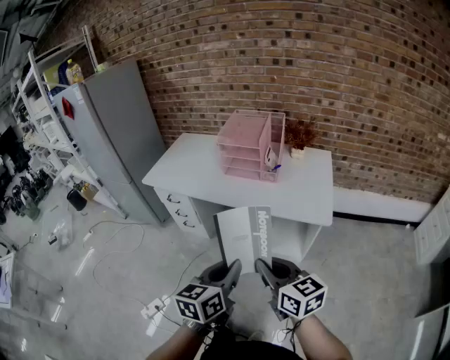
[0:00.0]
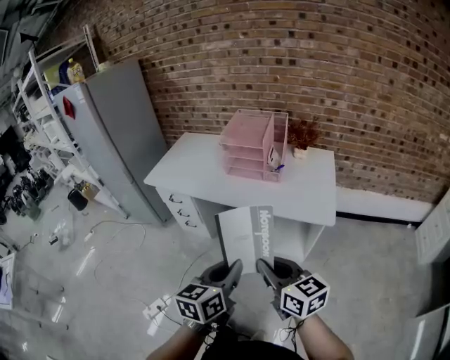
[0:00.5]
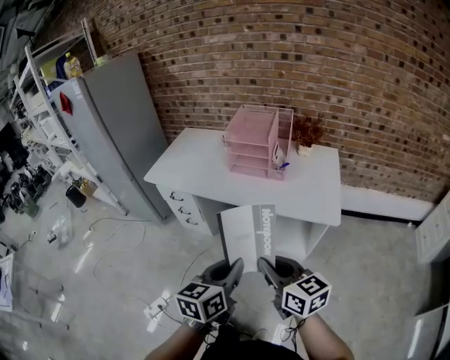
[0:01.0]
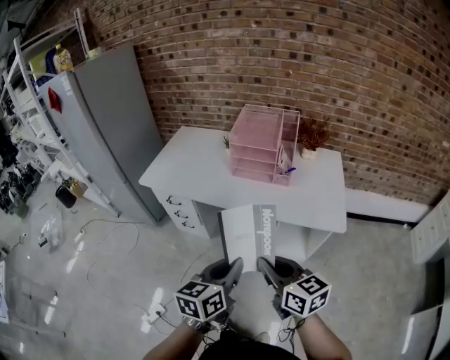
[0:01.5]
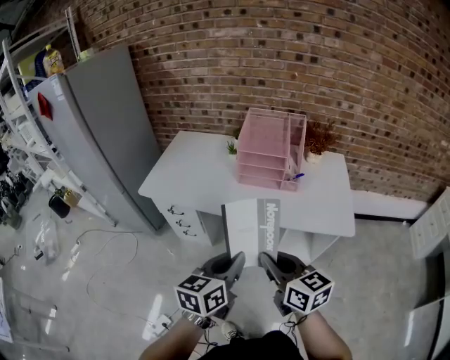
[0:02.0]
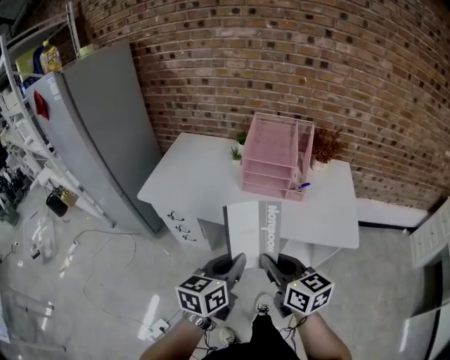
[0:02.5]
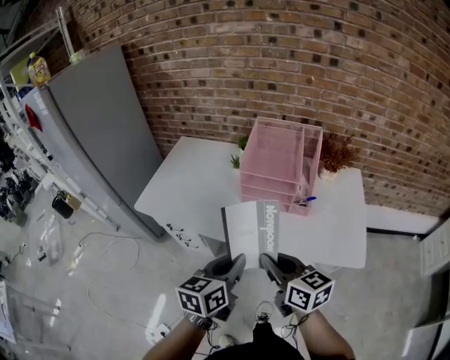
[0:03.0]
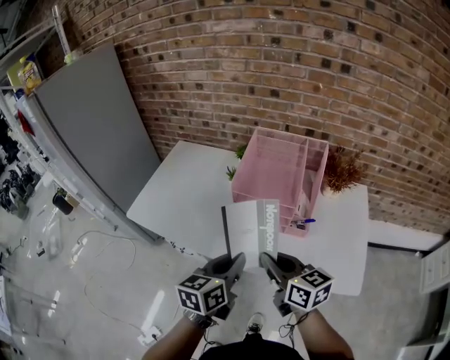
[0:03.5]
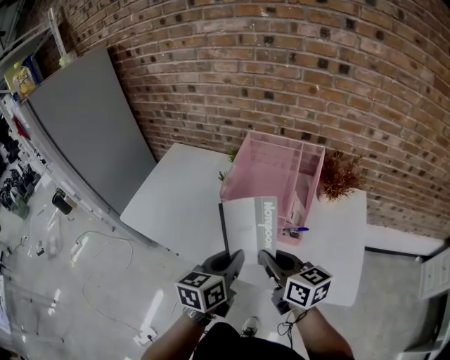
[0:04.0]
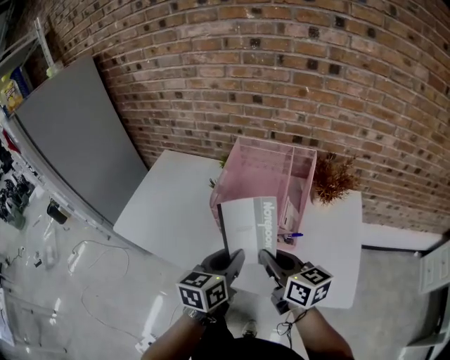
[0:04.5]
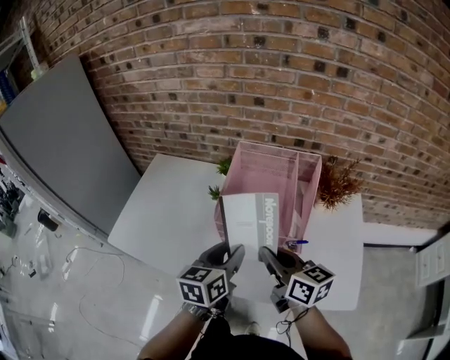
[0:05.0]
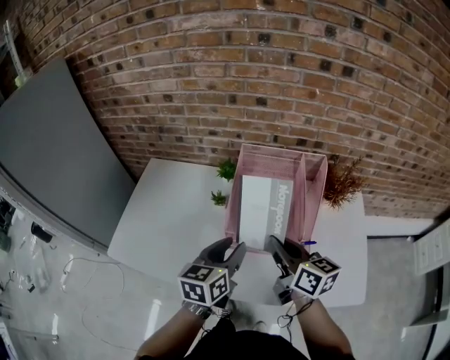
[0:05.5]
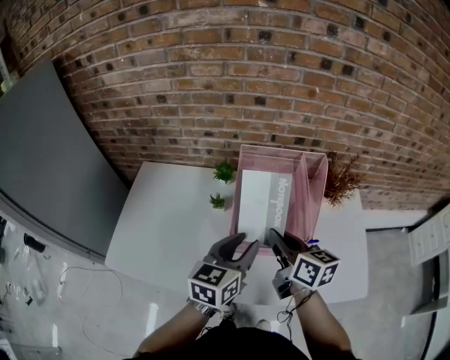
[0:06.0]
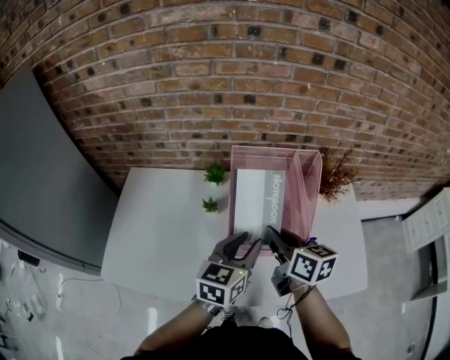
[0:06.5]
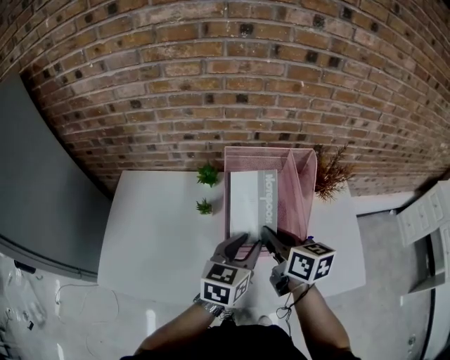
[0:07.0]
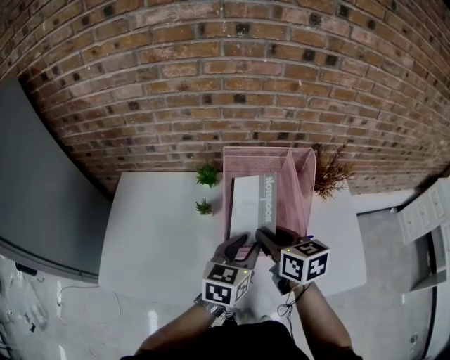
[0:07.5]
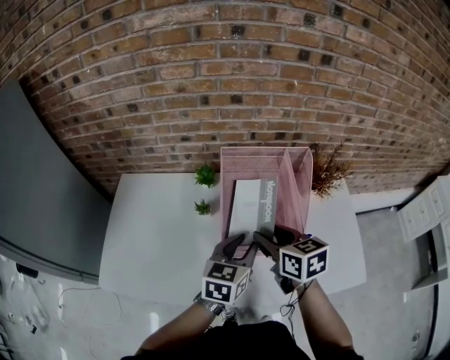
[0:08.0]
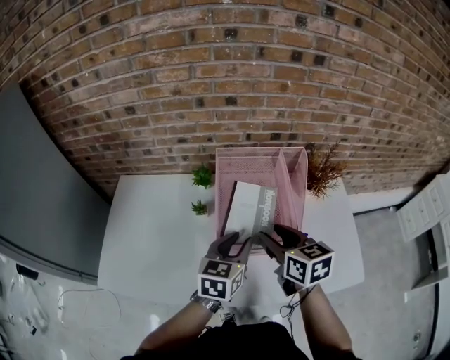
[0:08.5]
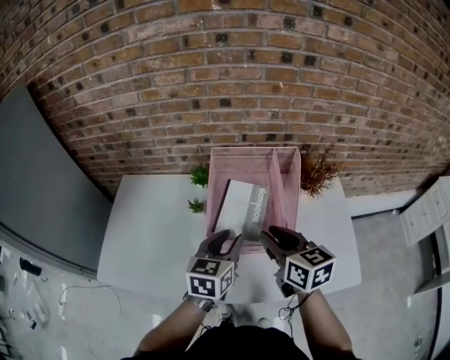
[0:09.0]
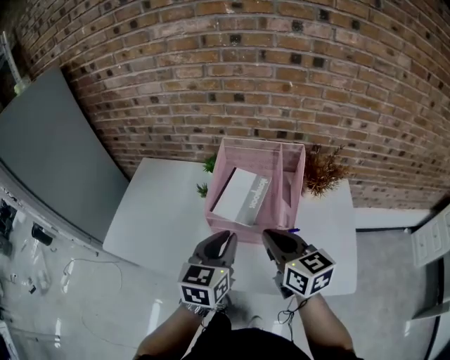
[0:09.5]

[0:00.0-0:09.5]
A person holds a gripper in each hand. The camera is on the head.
0:00.0 to 0:02.0: The two grippers go some 20 cm forward and to the left.
0:02.0 to 0:04.0: The two grippers go approximately 30 cm forward.
0:04.0 to 0:05.5: Both grippers move forward, about 15 cm. The left gripper opens its fingers.
0:05.5 to 0:07.5: The right gripper is displaced forward by about 5 cm, and opens its fingers. Meanwhile the left gripper shifts by roughly 5 cm.
0:07.5 to 0:09.5: The left gripper heads backward and upward, covering roughly 10 cm, and closes; the right gripper travels backward, to the right and upward by some 15 cm, and closes.

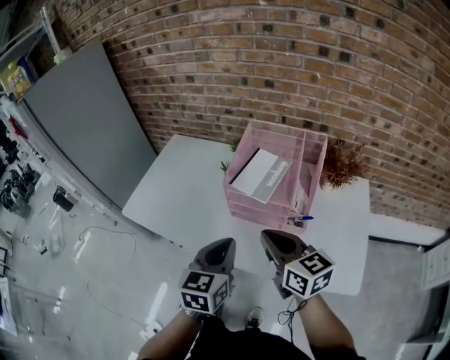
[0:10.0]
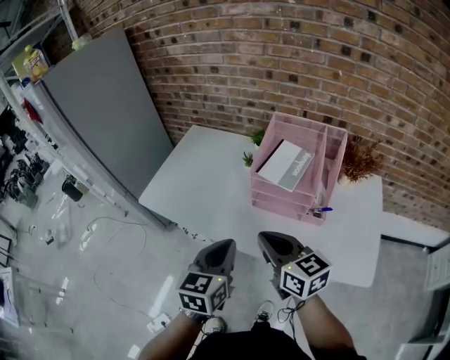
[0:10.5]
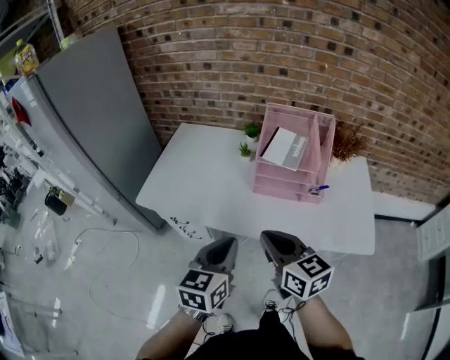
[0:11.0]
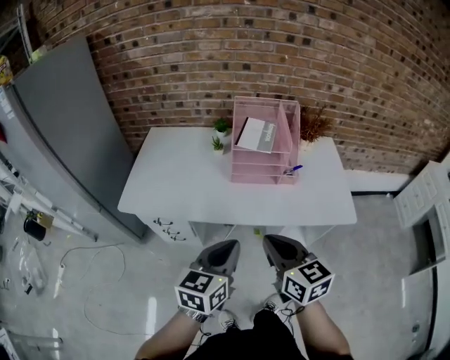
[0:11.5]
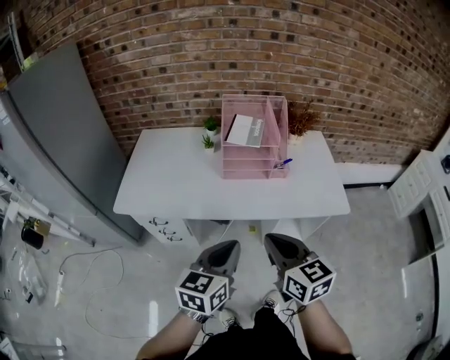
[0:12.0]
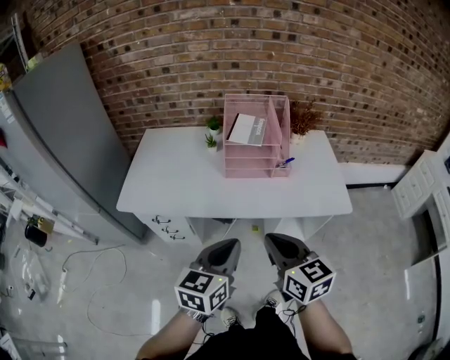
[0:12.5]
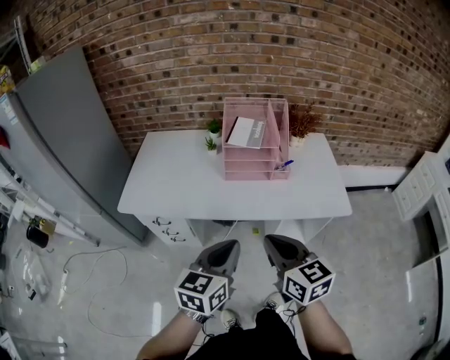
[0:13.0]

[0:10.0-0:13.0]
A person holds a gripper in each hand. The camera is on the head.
0:10.0 to 0:11.5: The right gripper changes place by some 25 cm, and swivels approximately 20 degrees; the left gripper moves some 20 cm, and turns by some 20 degrees.
0:11.5 to 0:13.0: There are only small adjustments of the grippers.

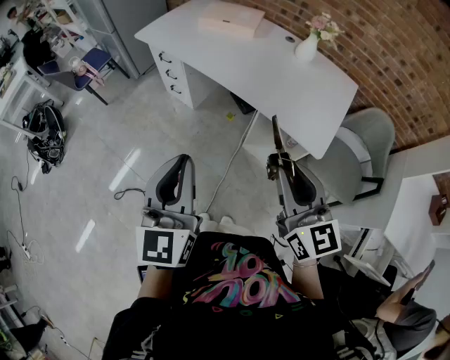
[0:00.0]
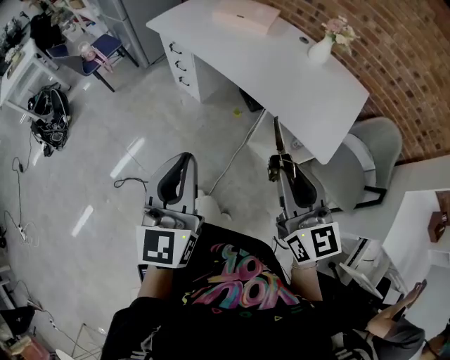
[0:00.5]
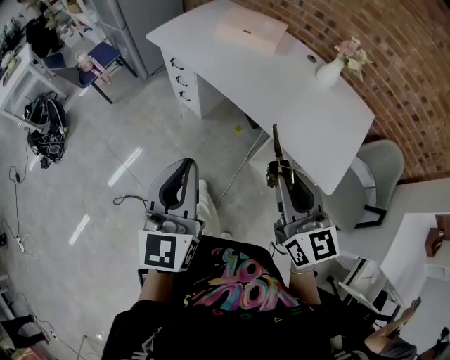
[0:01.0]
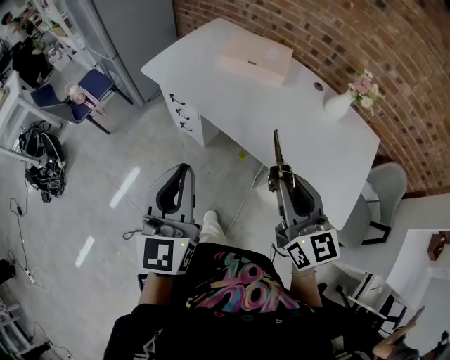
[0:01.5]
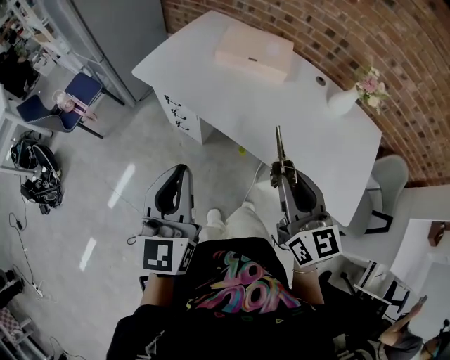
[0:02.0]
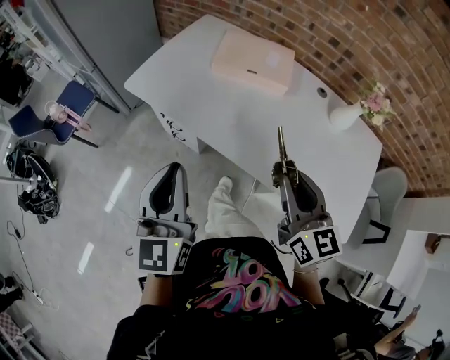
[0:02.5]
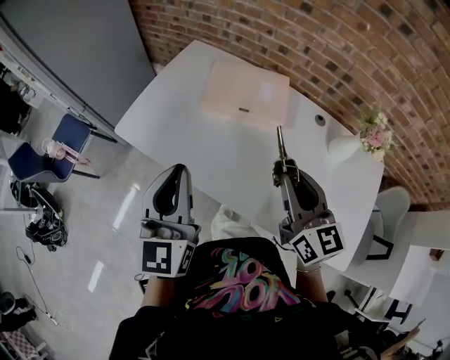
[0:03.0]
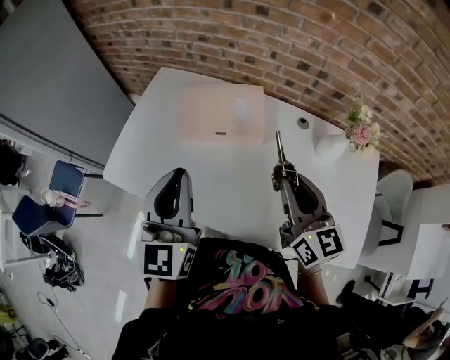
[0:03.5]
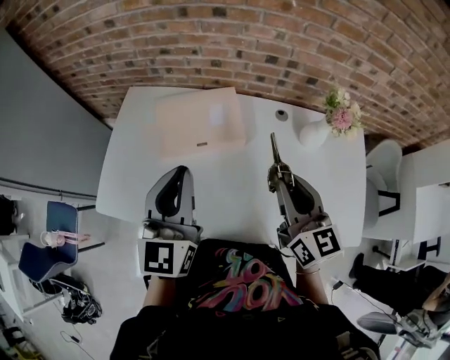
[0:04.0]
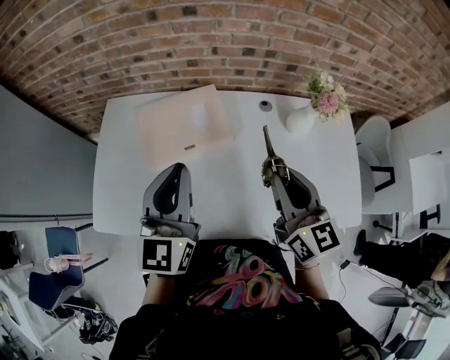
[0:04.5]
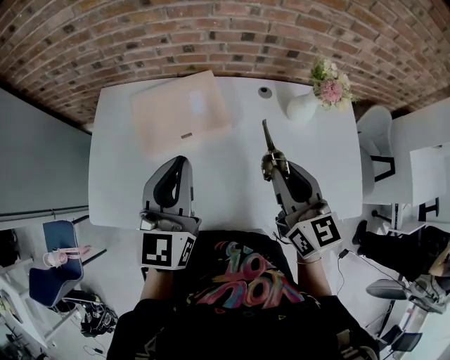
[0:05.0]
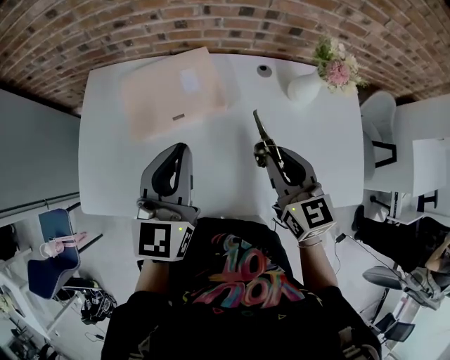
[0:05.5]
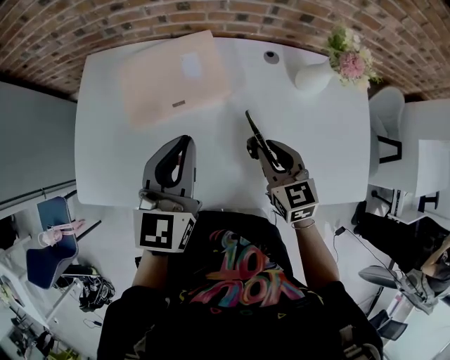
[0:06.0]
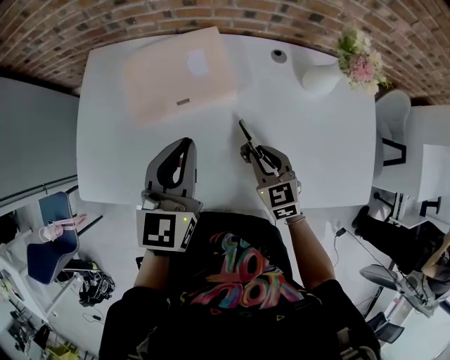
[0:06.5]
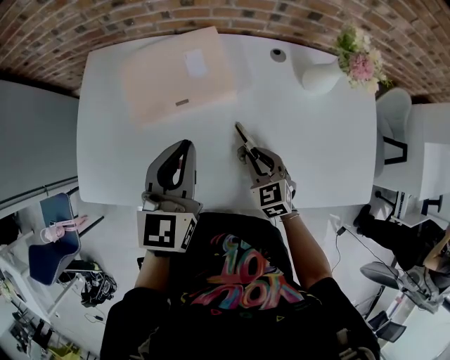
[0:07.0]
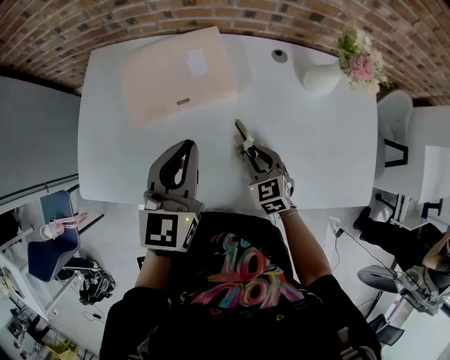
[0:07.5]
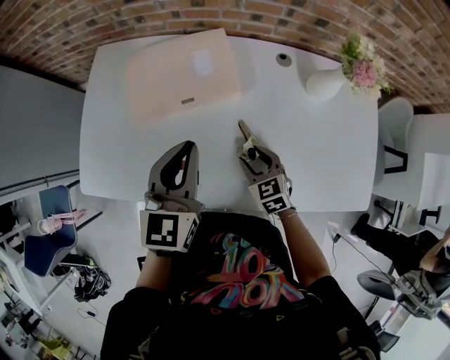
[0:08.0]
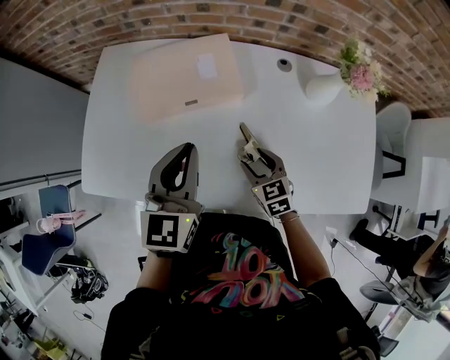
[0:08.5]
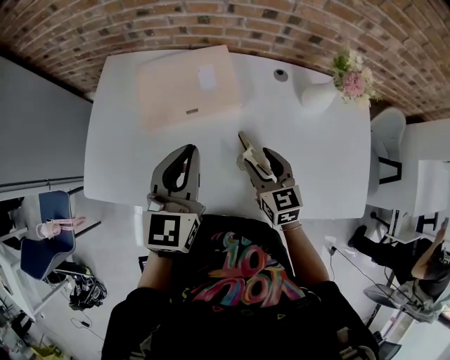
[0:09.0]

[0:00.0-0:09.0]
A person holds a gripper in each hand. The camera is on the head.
0:00.0 to 0:02.0: The two grippers travel together, forward, roughly 40 cm.
0:02.0 to 0:04.5: The right gripper moves roughly 35 cm, and changes its angle by some 30 degrees, while the left gripper shifts by some 50 cm, and rotates about 30 degrees.
0:04.5 to 0:07.0: The right gripper moves downward, some 30 cm, and tips its fingers downward by roughly 30 degrees; the left gripper heads downward, covering approximately 15 cm.
0:07.0 to 0:09.0: The right gripper shifts approximately 10 cm upward, and opens.

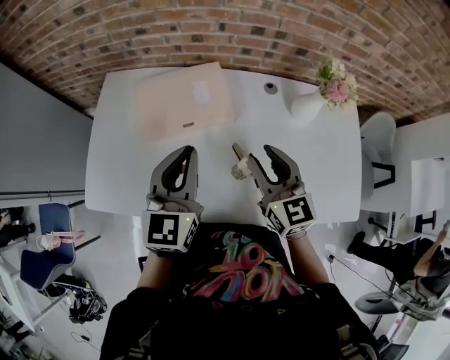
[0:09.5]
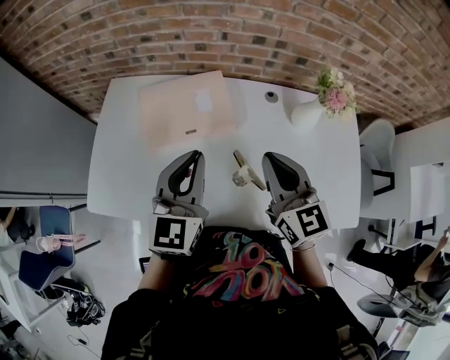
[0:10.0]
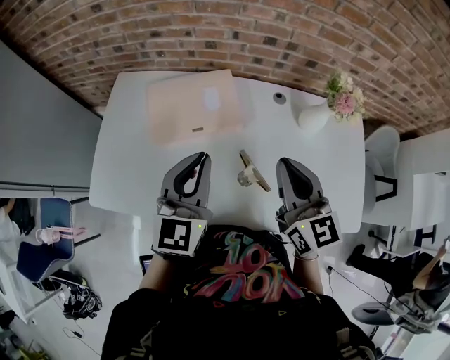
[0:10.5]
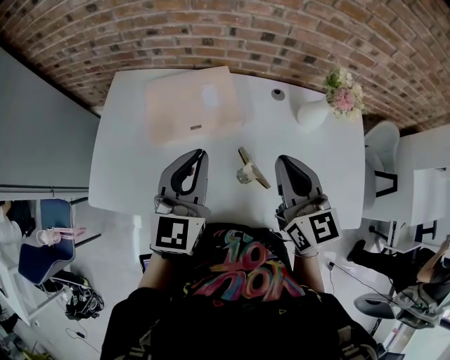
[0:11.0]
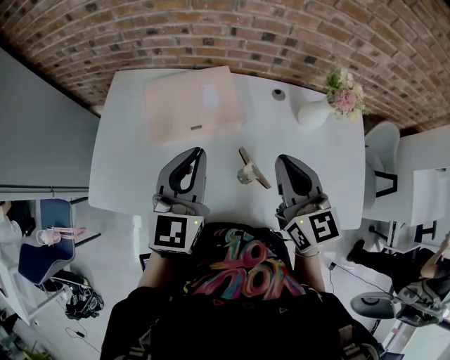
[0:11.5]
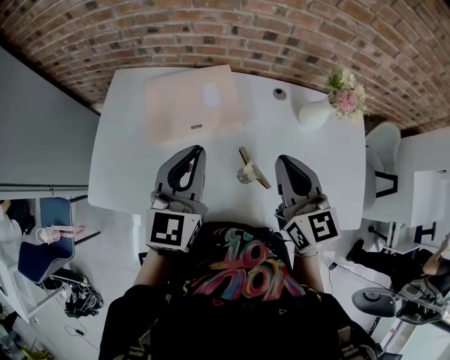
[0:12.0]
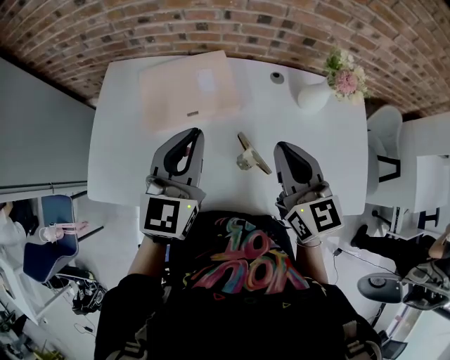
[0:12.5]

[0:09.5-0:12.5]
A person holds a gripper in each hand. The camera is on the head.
0:09.5 to 0:11.0: The right gripper goes about 5 cm upward, and closes its fingers.
0:11.0 to 0:12.5: There are only small adjustments of the grippers.

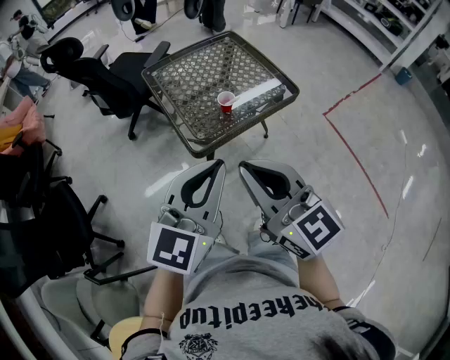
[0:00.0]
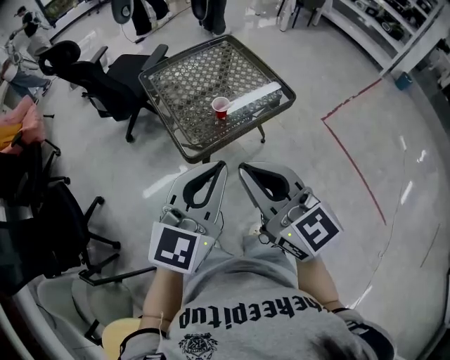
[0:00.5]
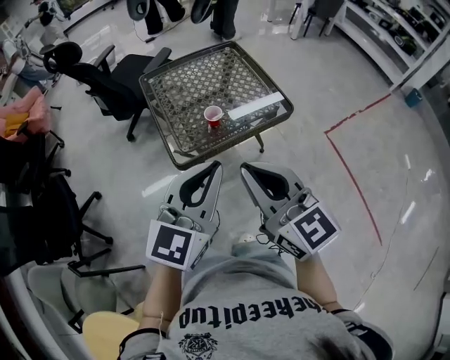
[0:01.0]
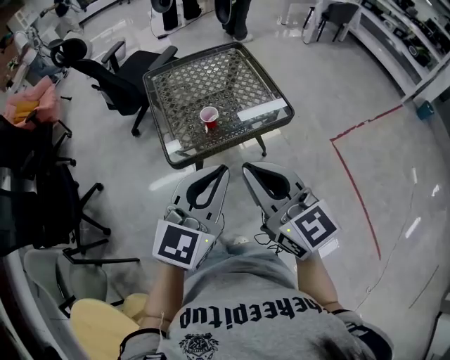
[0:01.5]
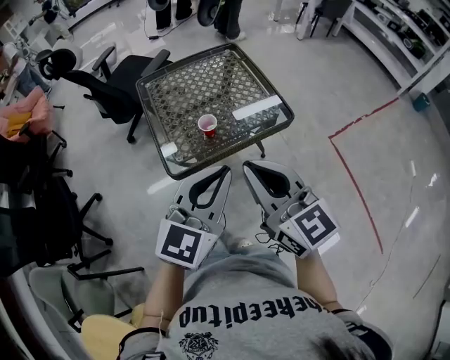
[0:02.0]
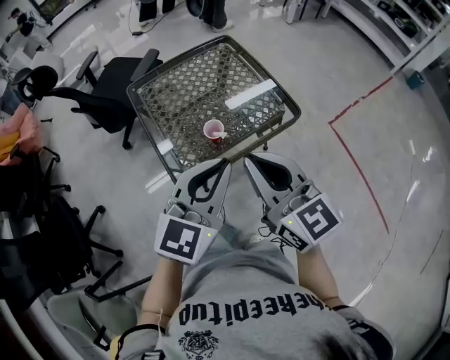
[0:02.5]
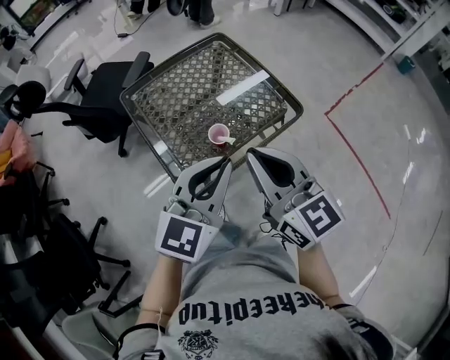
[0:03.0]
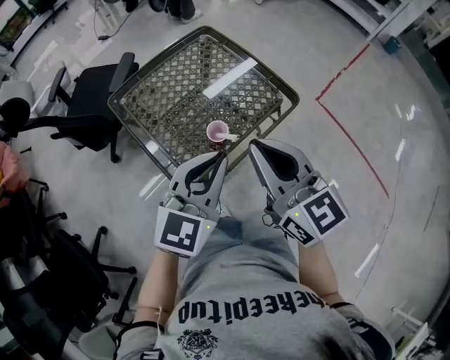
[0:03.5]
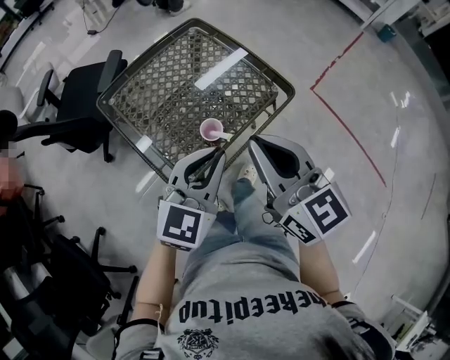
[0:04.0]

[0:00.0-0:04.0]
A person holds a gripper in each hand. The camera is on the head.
0:00.0 to 0:02.0: Both grippers move to the right and forward, approximately 15 cm.
0:02.0 to 0:04.0: The right gripper heads forward and to the left, covering about 15 cm, and turns by roughly 20 degrees. The left gripper is displaced forward, to the left and downward by roughly 20 cm, and turns by about 20 degrees.
